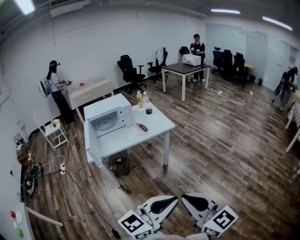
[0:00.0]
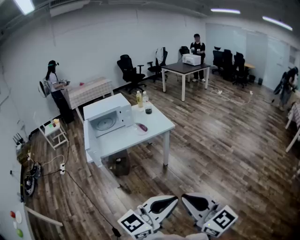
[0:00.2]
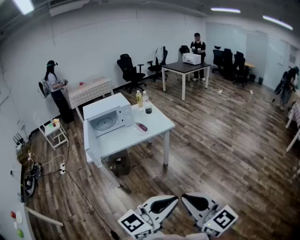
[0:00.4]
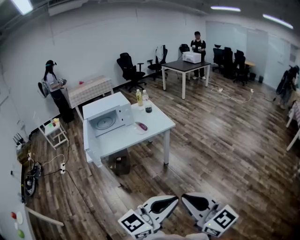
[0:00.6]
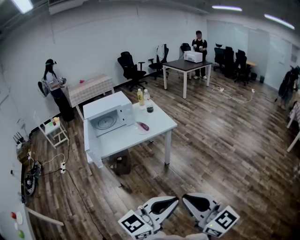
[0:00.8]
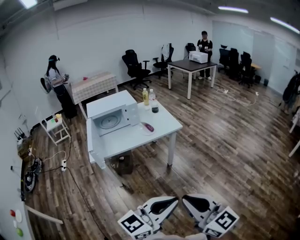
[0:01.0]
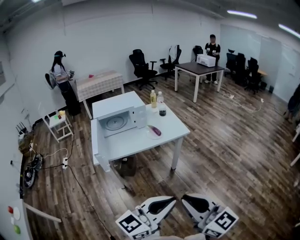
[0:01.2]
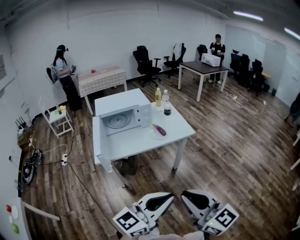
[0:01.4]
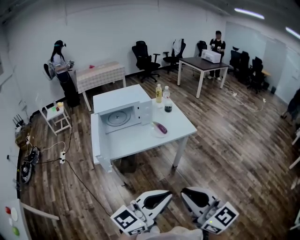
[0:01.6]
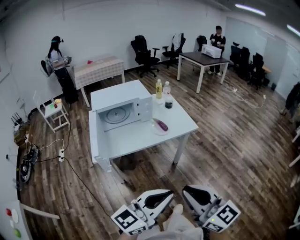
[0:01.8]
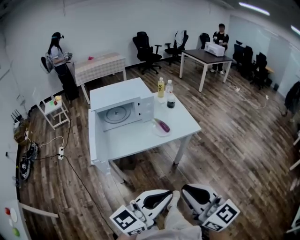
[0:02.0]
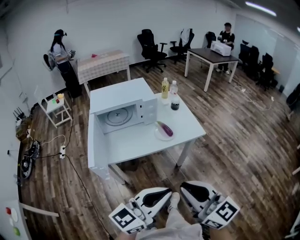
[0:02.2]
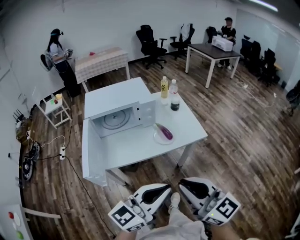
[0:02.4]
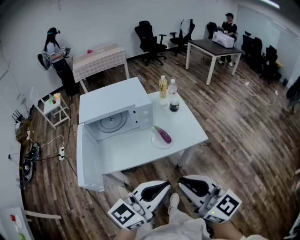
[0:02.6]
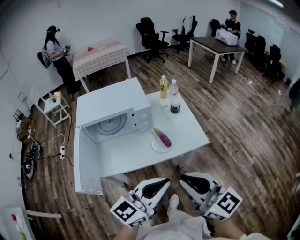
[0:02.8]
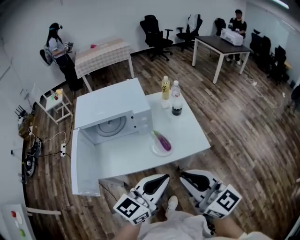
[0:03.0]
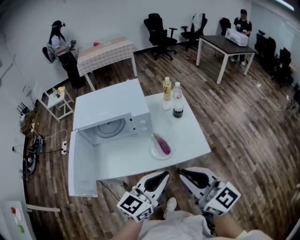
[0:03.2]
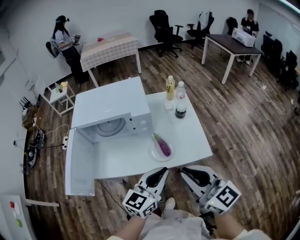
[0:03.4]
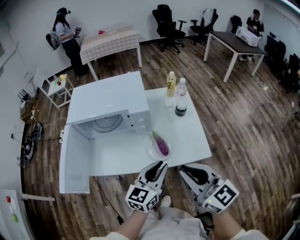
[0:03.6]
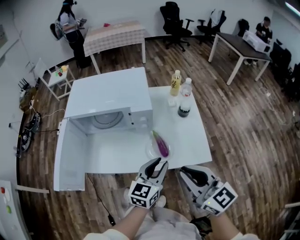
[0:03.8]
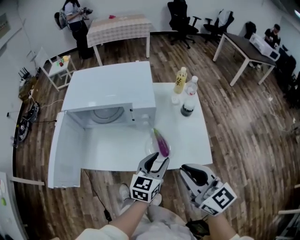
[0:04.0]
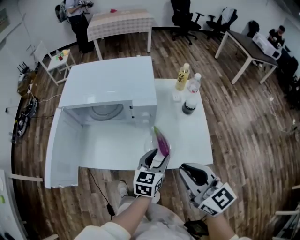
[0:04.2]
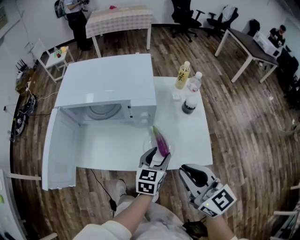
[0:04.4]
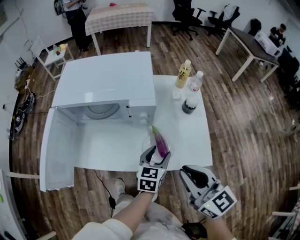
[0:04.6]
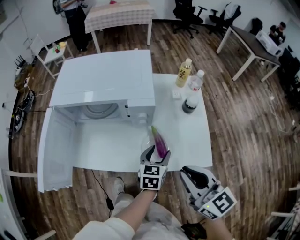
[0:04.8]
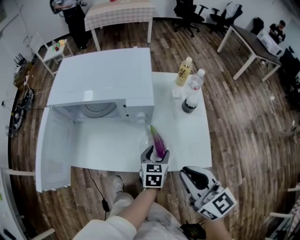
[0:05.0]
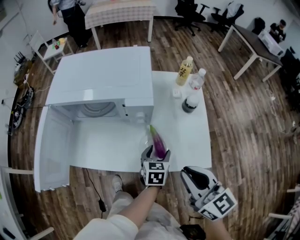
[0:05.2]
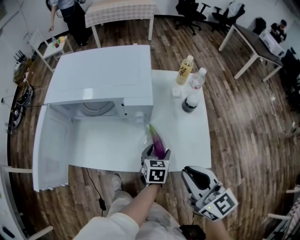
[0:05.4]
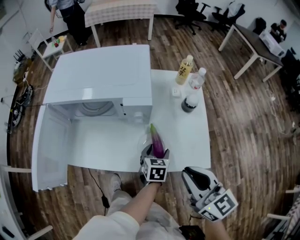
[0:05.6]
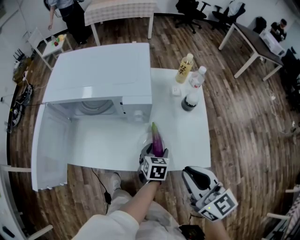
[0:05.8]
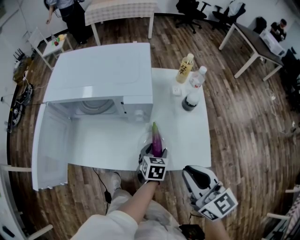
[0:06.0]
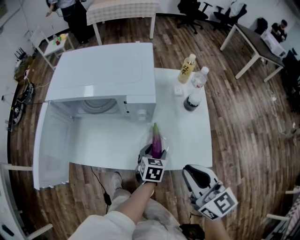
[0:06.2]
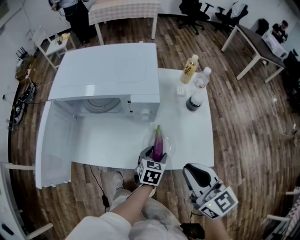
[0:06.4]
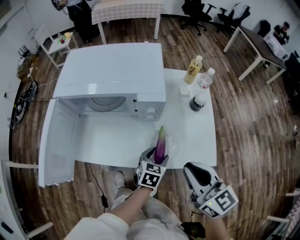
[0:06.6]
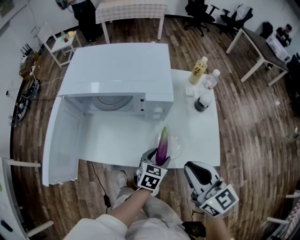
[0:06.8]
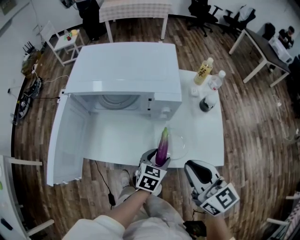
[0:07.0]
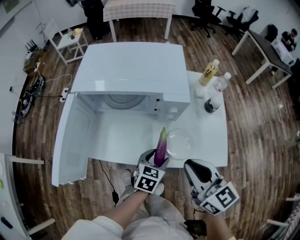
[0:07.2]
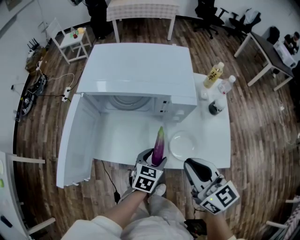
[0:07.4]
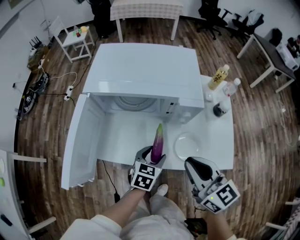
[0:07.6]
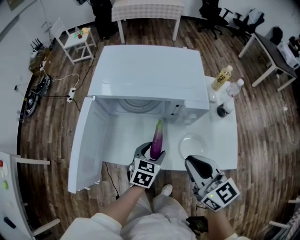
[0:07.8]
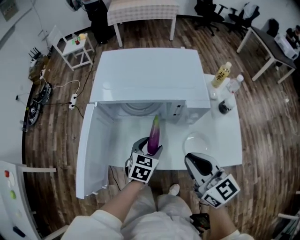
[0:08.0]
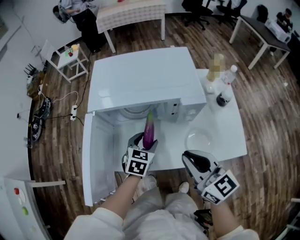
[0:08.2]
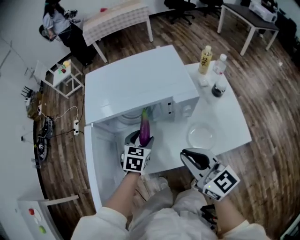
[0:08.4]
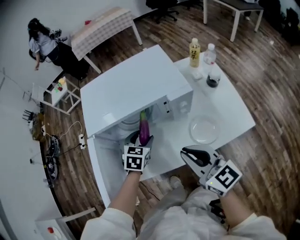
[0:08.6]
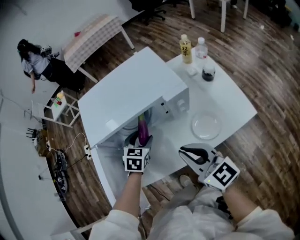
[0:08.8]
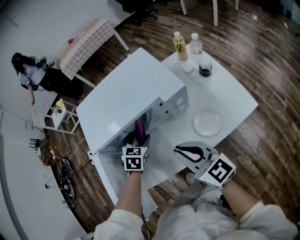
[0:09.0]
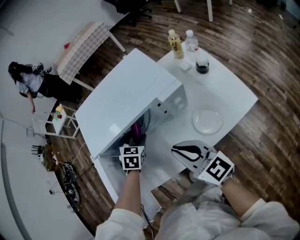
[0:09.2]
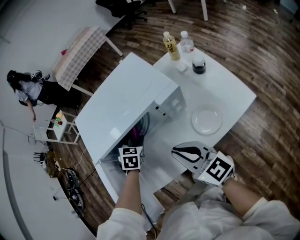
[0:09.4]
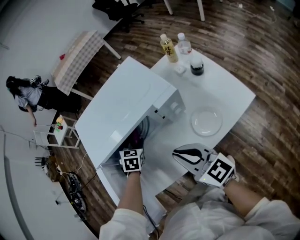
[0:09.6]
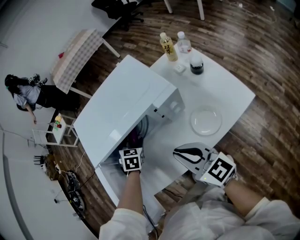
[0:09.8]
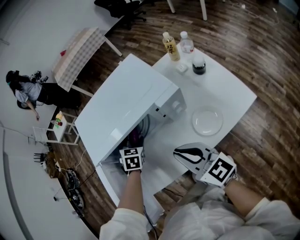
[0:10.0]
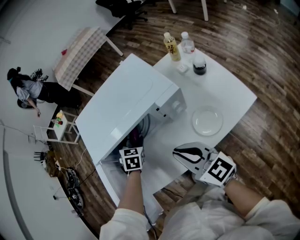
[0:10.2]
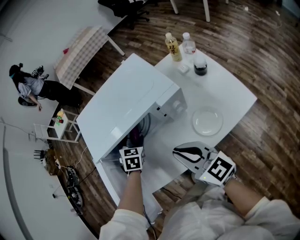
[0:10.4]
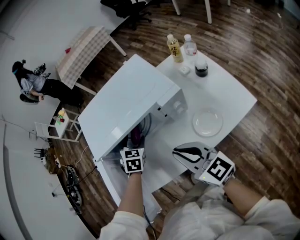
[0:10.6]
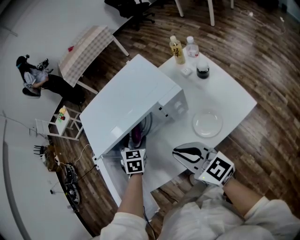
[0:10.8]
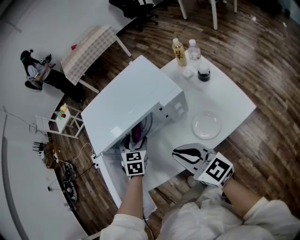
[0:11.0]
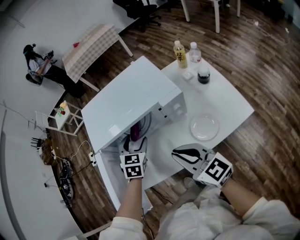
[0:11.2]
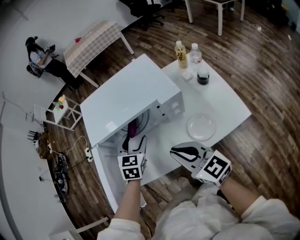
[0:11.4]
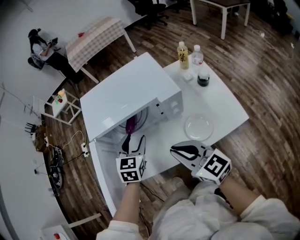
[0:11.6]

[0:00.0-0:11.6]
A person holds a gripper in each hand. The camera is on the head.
0:00.0 to 0:01.4: The left gripper travels to the left and forward by some 20 cm; the right gripper travels forward and to the left by some 15 cm.
0:01.4 to 0:02.8: Both grippers travel together forward, approximately 30 cm.
0:02.8 to 0:04.4: The left gripper travels forward and downward by approximately 35 cm, turns by about 50 degrees, and opens its fingers. The right gripper moves forward, downward and to the right, about 20 cm.
0:04.4 to 0:05.8: The left gripper travels downward by roughly 10 cm, and swivels some 20 degrees.
0:05.8 to 0:07.2: The right gripper is displaced to the left by some 10 cm. Meanwhile the left gripper goes roughly 15 cm to the left, backward and upward.
0:07.2 to 0:08.8: The right gripper shifts approximately 10 cm to the left. The left gripper is displaced forward and to the left by roughly 25 cm, and changes its angle by roughly 20 degrees.
0:08.8 to 0:10.2: The left gripper travels forward by about 5 cm.
0:10.2 to 0:11.6: The left gripper heads backward and upward, covering some 15 cm, and rotates some 20 degrees.

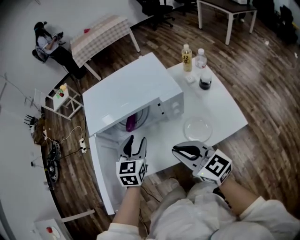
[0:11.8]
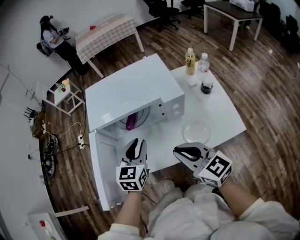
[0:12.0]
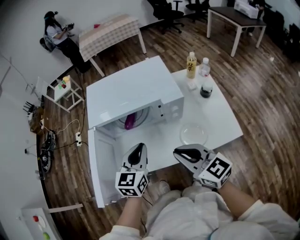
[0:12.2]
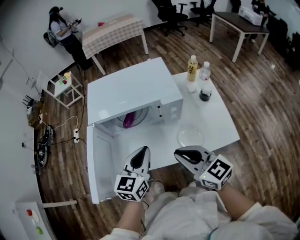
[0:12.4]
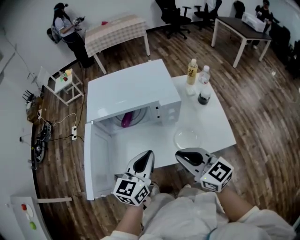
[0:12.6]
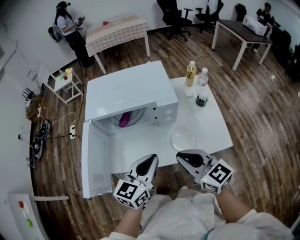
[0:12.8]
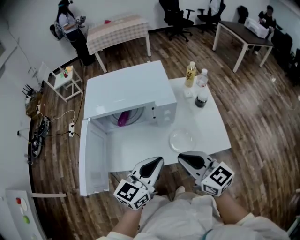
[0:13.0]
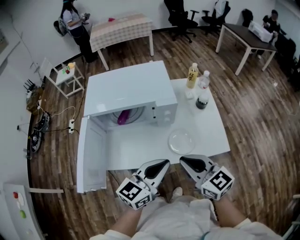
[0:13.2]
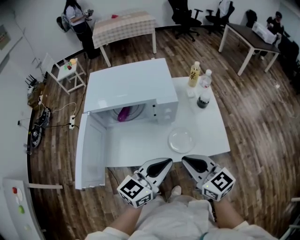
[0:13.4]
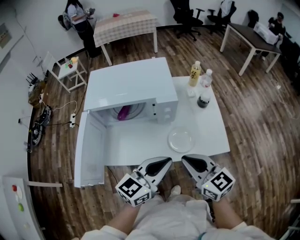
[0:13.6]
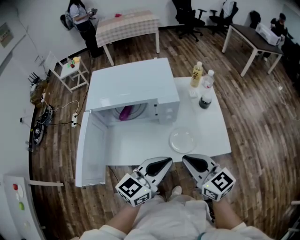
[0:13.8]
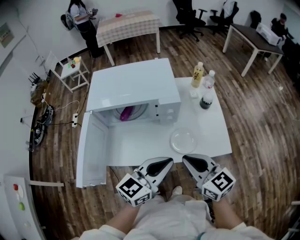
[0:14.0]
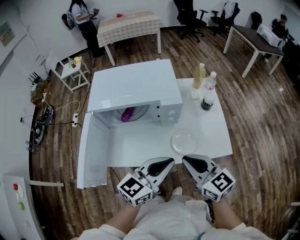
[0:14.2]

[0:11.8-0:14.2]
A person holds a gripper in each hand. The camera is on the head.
0:11.8 to 0:13.0: The right gripper shifts roughly 10 cm to the right and backward; the left gripper goes approximately 20 cm backward, to the right and upward, rotates some 30 degrees, and closes up.
0:13.0 to 0:14.2: The grippers move only a little.

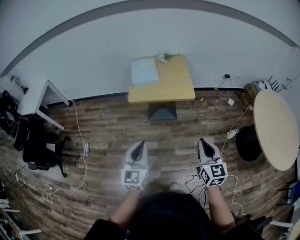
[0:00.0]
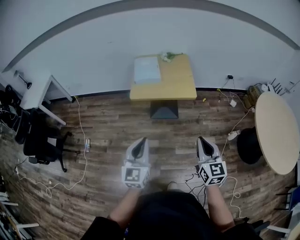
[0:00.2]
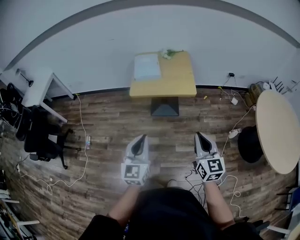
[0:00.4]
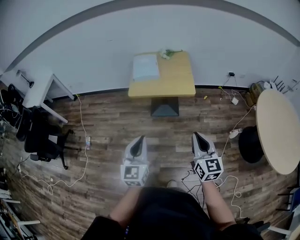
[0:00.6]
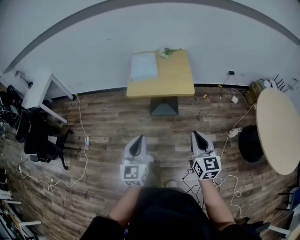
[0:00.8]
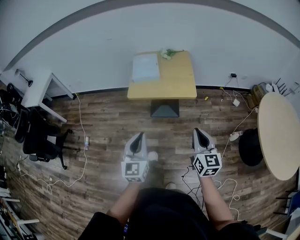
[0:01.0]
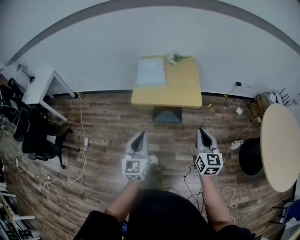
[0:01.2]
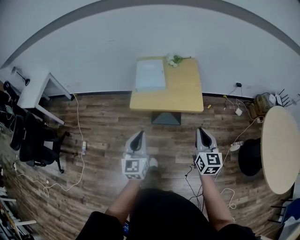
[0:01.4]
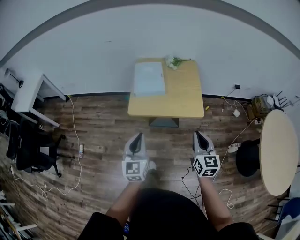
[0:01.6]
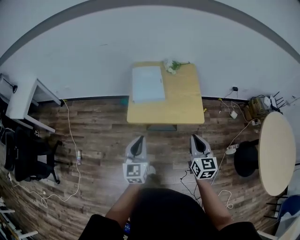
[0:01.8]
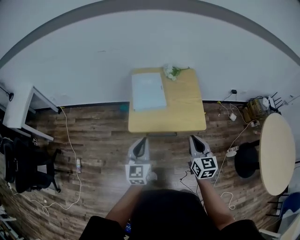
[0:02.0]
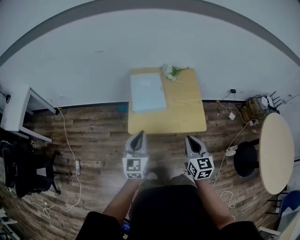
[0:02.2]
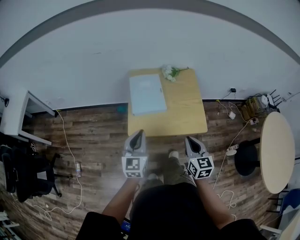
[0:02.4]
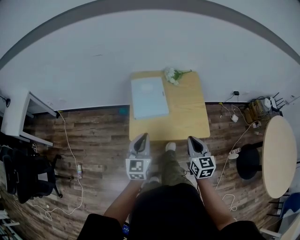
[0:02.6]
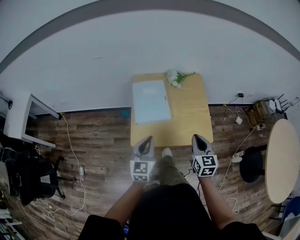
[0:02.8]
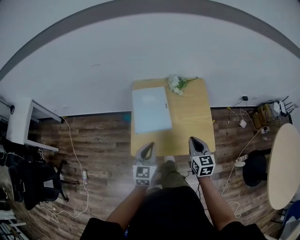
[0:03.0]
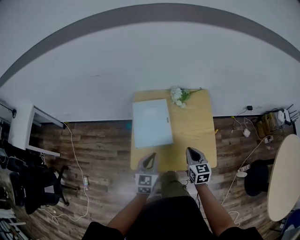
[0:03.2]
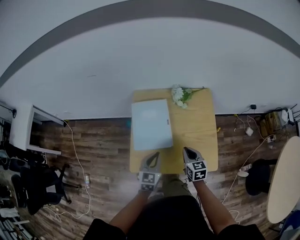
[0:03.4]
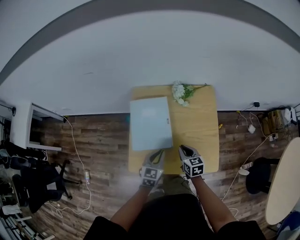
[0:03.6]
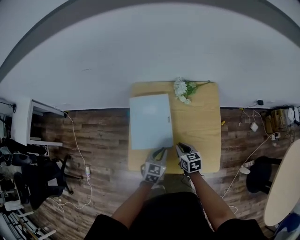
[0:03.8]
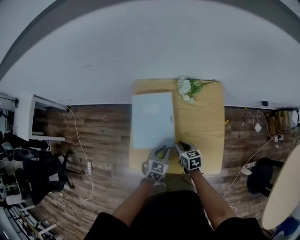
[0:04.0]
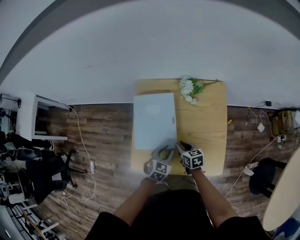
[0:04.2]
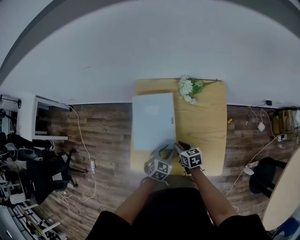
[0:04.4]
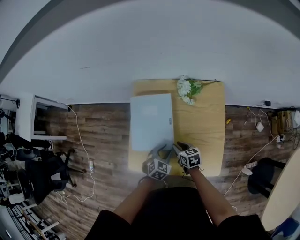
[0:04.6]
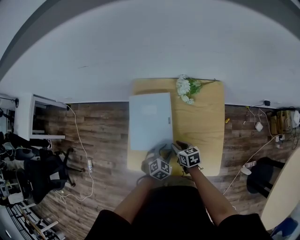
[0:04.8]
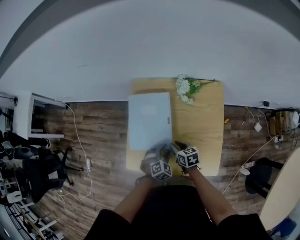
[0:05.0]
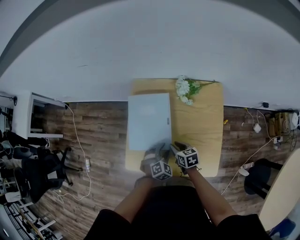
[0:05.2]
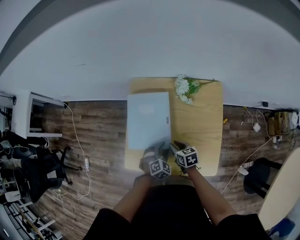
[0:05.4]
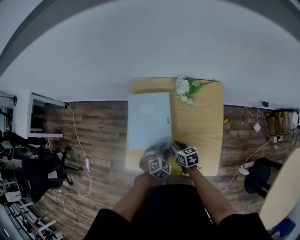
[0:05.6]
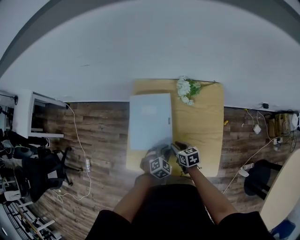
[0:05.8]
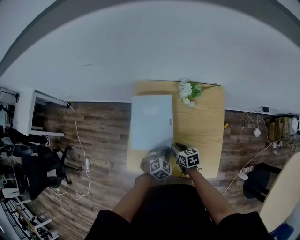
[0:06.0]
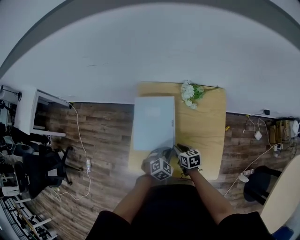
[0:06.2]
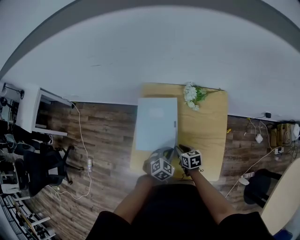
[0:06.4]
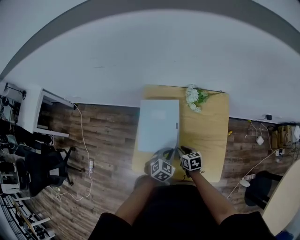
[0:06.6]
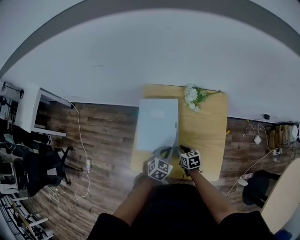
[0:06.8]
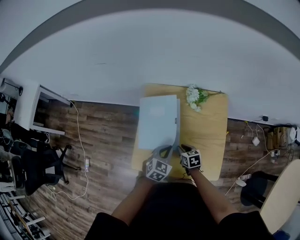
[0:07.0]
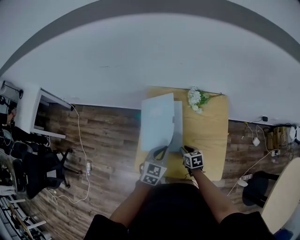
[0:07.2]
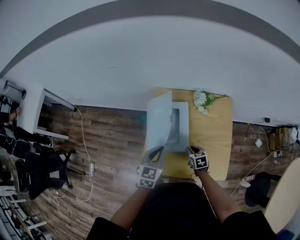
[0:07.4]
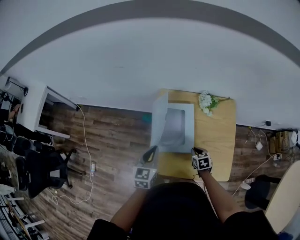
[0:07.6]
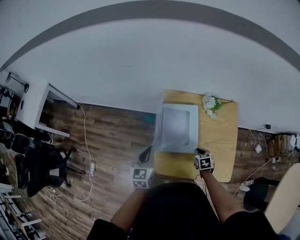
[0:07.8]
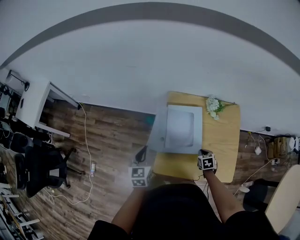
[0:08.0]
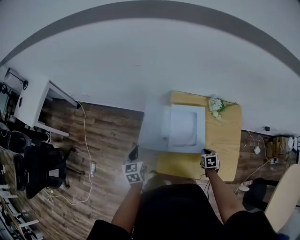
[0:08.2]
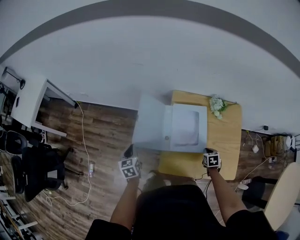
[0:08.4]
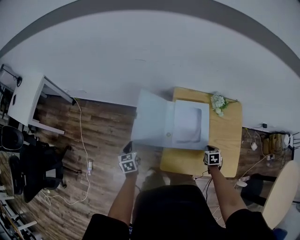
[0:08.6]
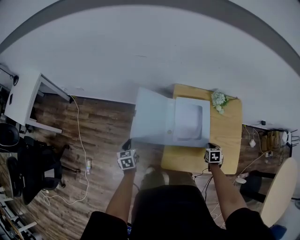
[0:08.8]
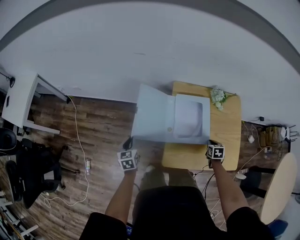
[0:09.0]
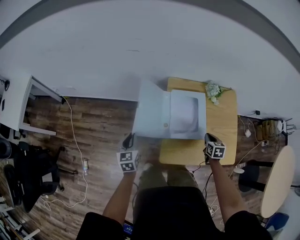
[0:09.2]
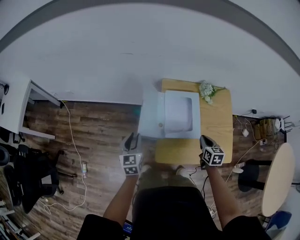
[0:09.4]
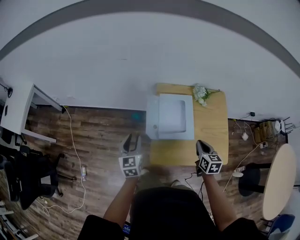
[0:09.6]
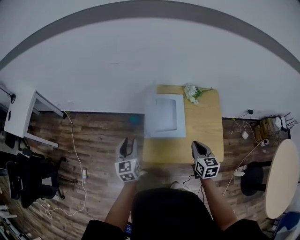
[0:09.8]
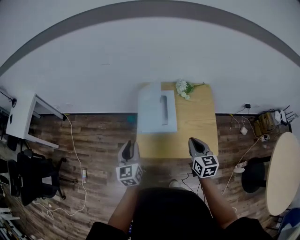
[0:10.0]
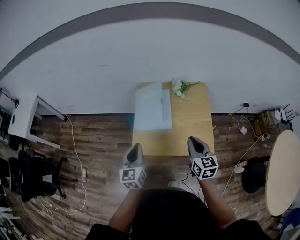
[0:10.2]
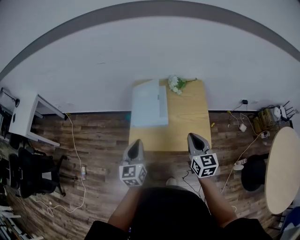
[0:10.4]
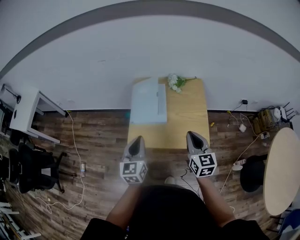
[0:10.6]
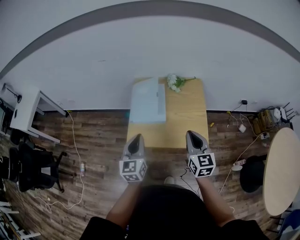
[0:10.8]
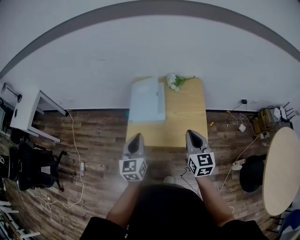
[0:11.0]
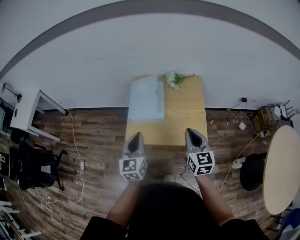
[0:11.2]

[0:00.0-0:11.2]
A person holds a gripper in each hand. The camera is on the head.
0:00.0 to 0:01.6: The two grippers go roughly 30 cm forward.
0:01.6 to 0:03.2: Both grippers travel together forward, approximately 40 cm.
0:03.2 to 0:04.8: The left gripper travels downward, to the right and forward by roughly 25 cm, tips its fingers downward by some 30 degrees, and opens. Meanwhile the right gripper is displaced downward and forward by roughly 20 cm, changes its angle by approximately 30 degrees, and opens.
0:04.8 to 0:06.4: The left gripper closes up.
0:06.4 to 0:08.0: The left gripper is displaced to the left and upward by approximately 40 cm, and changes its angle by some 50 degrees. The right gripper changes its angle by some 30 degrees.
0:08.0 to 0:09.6: The left gripper moves roughly 20 cm to the left and comes back, and opens its fingers. The right gripper shifts approximately 15 cm upward, and turns by approximately 30 degrees.
0:09.6 to 0:11.2: The right gripper travels backward, to the right and upward by roughly 25 cm, and turns by roughly 20 degrees. The left gripper heads to the right and backward, covering roughly 35 cm, and closes.
